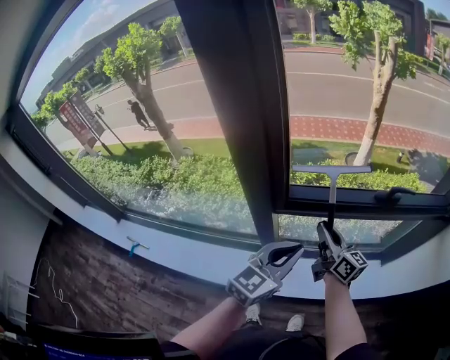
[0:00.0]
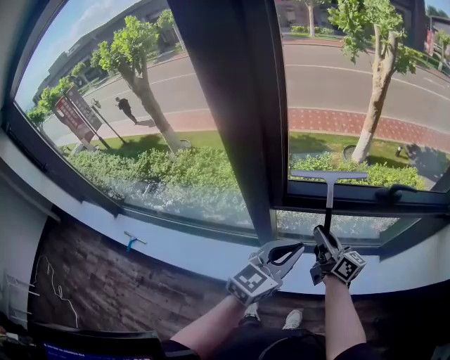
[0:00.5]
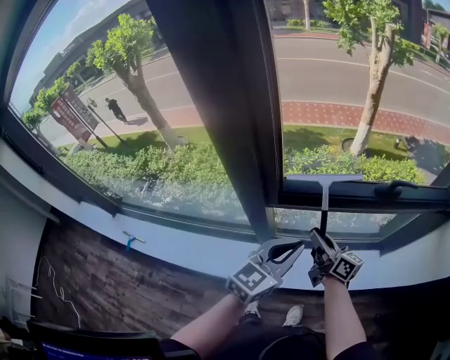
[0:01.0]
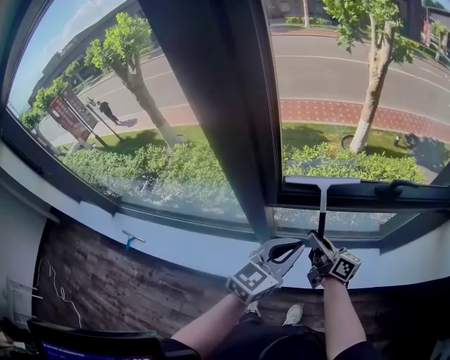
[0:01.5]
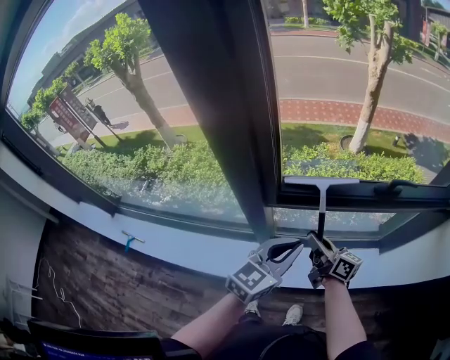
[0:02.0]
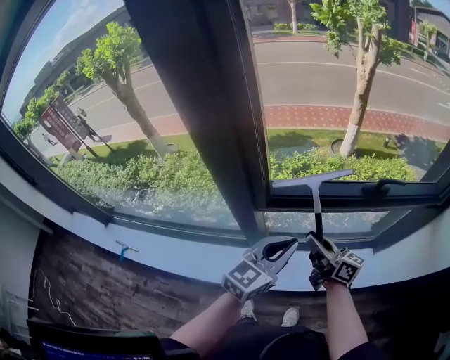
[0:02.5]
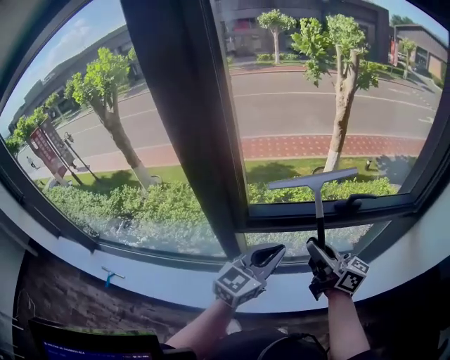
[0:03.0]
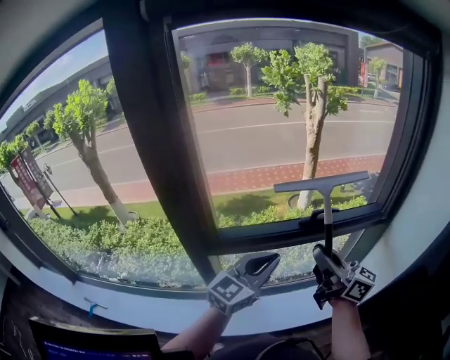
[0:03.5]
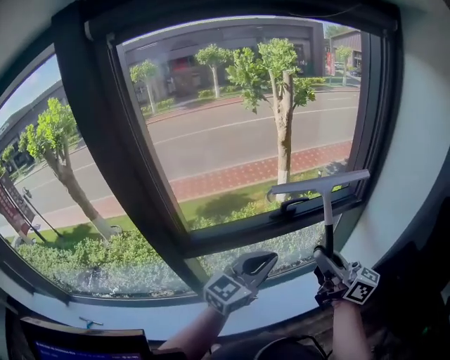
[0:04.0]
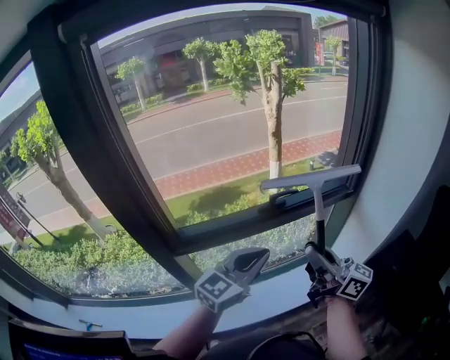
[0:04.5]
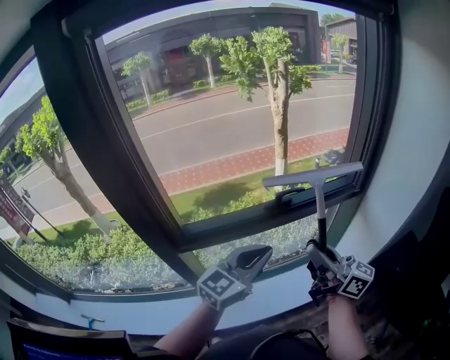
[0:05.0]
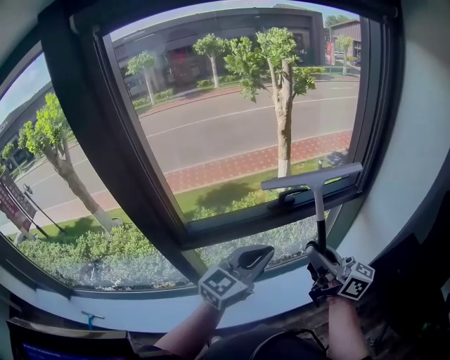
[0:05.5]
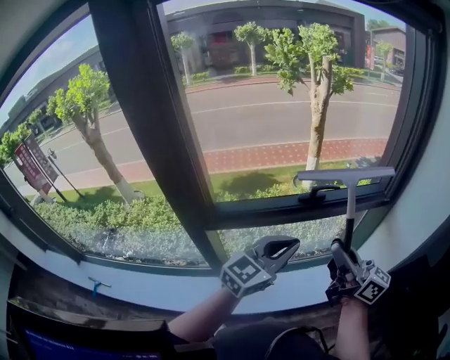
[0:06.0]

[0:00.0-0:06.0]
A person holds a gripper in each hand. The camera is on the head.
0:00.0 to 0:02.0: The left gripper moves some 5 cm, while the right gripper moves downward, about 10 cm.
0:02.0 to 0:04.0: The left gripper moves to the right and upward, some 20 cm, and changes its angle by approximately 30 degrees. Meanwhile the right gripper is displaced upward and to the right by some 35 cm, and swivels approximately 30 degrees.
0:04.0 to 0:06.0: The grippers move only a little.

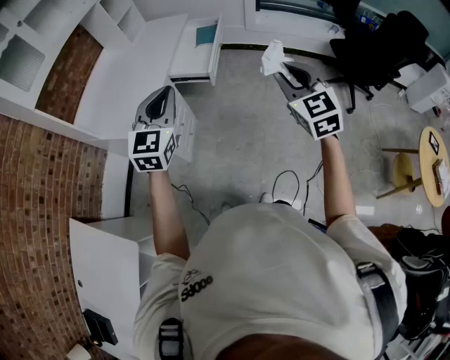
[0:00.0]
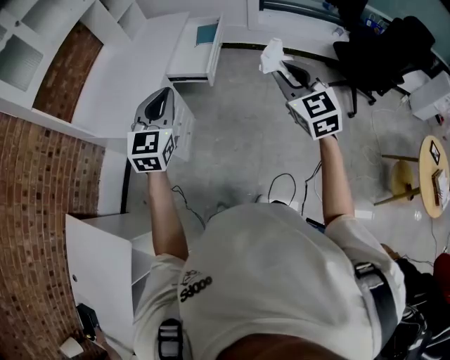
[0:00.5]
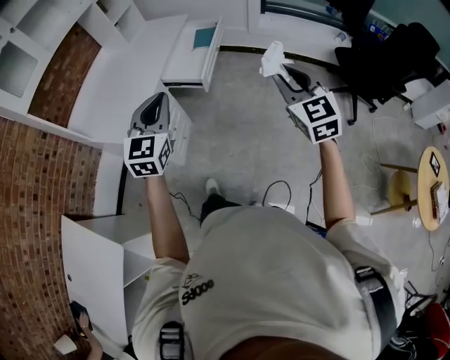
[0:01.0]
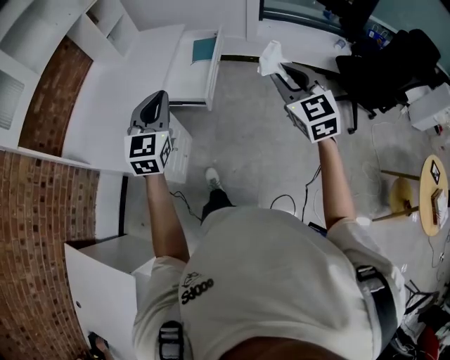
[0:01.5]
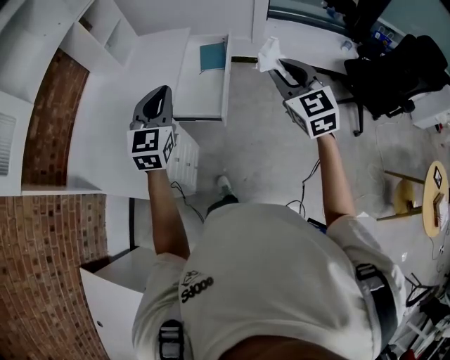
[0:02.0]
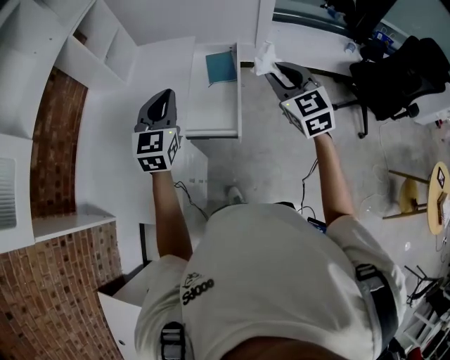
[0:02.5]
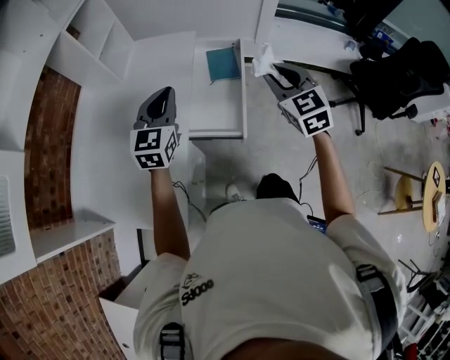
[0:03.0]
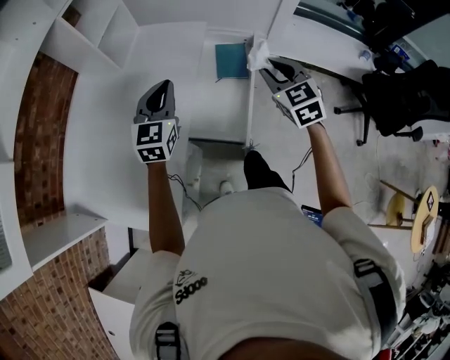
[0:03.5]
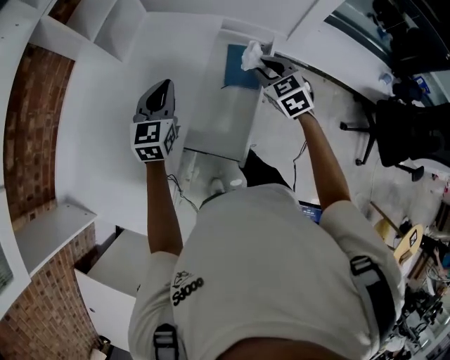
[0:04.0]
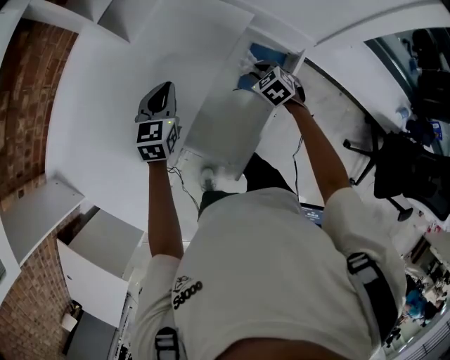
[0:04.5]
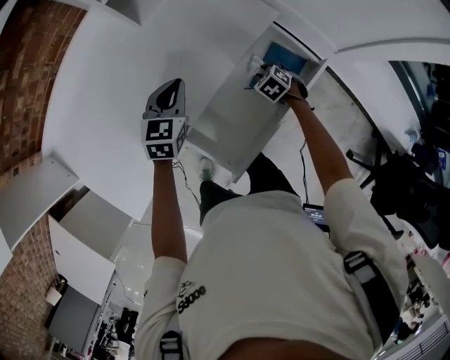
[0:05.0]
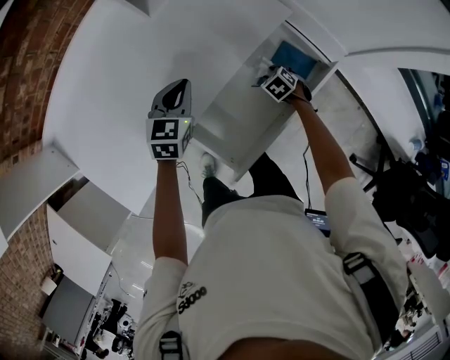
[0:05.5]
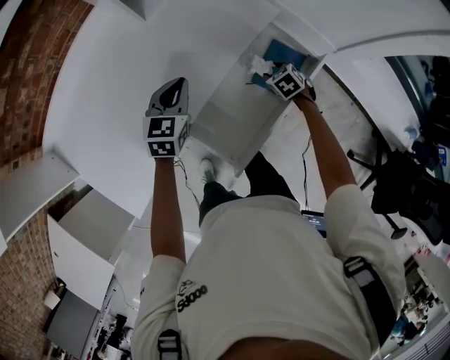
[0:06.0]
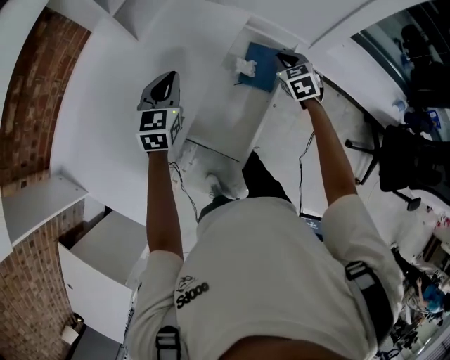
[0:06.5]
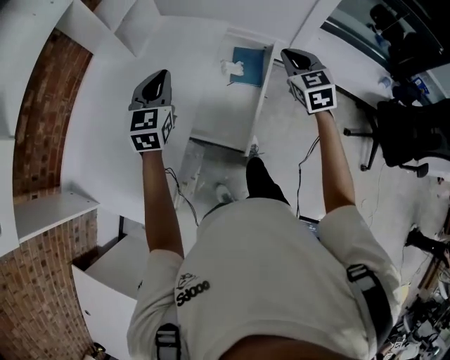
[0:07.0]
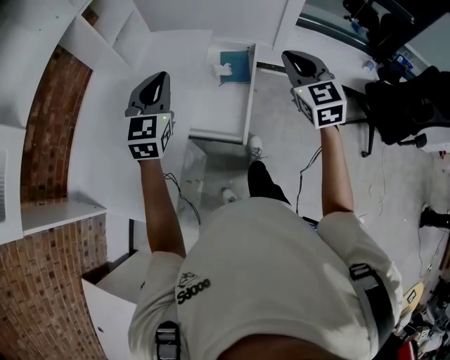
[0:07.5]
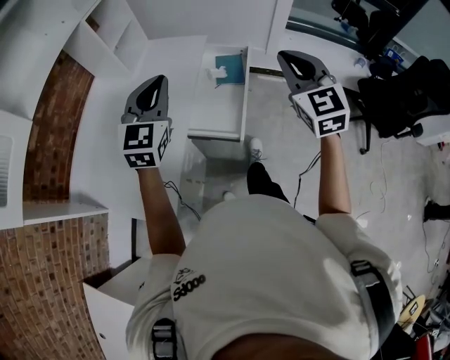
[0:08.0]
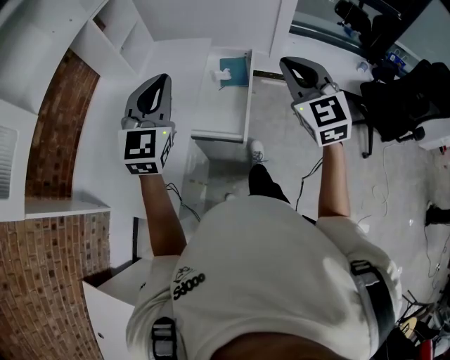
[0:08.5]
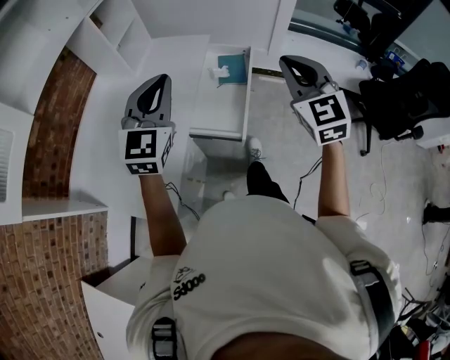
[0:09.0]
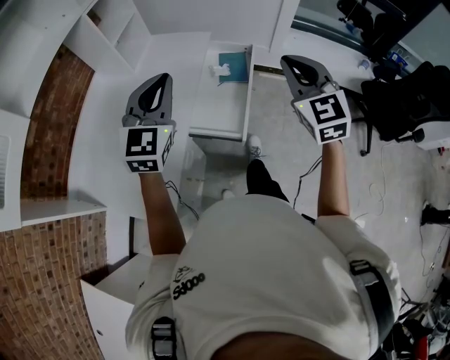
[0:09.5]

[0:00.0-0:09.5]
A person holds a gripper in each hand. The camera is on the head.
0:00.0 to 0:02.0: The two grippers go some 35 cm forward.
0:02.0 to 0:04.0: The two grippers go approximately 40 cm forward and downward. The right gripper rotates about 30 degrees.
0:04.0 to 0:05.5: The left gripper shifts some 15 cm downward, and turns by approximately 30 degrees. Meanwhile the right gripper heads downward, covering roughly 30 cm, and tips its fingers downward by some 30 degrees.
0:05.5 to 0:07.5: The left gripper shifts some 25 cm upward, and rotates approximately 40 degrees. The right gripper travels upward by approximately 50 cm, tips its fingers upward by some 60 degrees, and closes up.
0:07.5 to 0:09.5: The grippers both shift backward by about 5 cm.

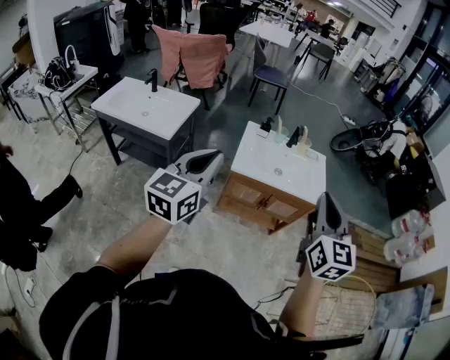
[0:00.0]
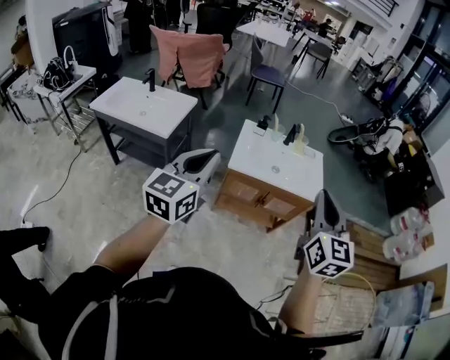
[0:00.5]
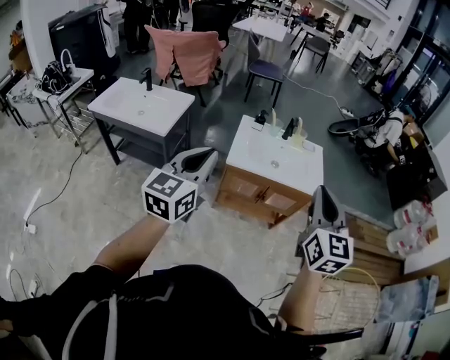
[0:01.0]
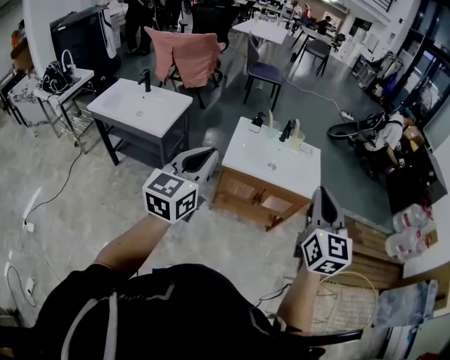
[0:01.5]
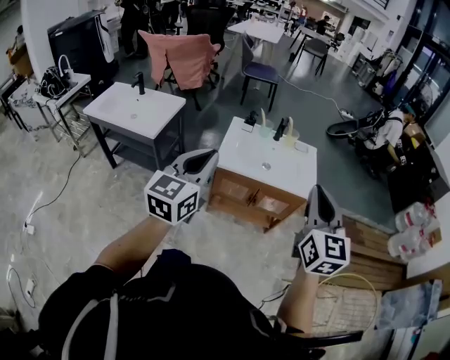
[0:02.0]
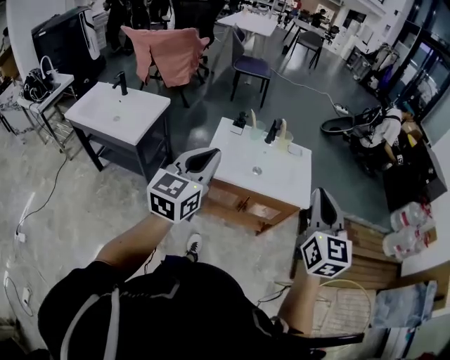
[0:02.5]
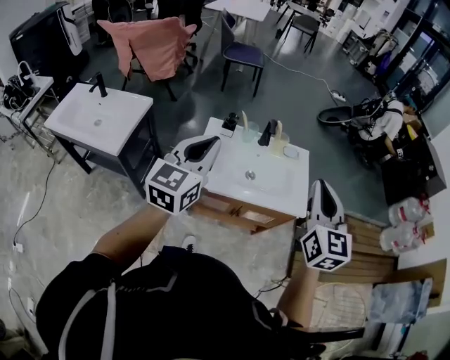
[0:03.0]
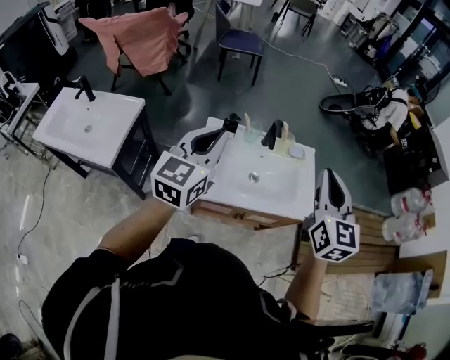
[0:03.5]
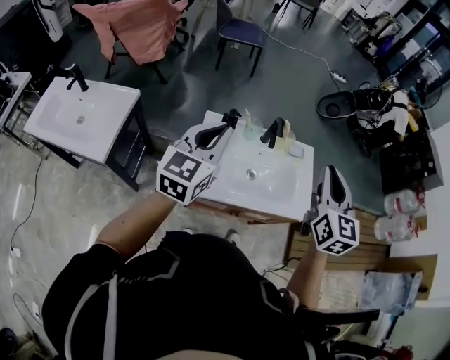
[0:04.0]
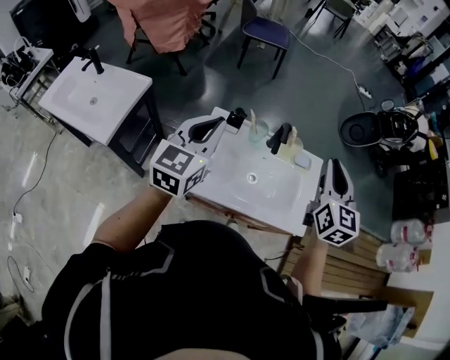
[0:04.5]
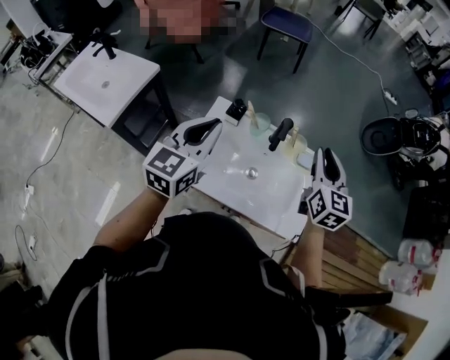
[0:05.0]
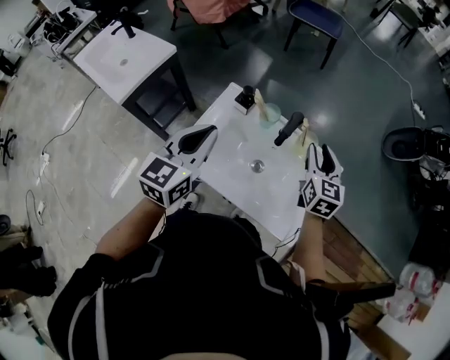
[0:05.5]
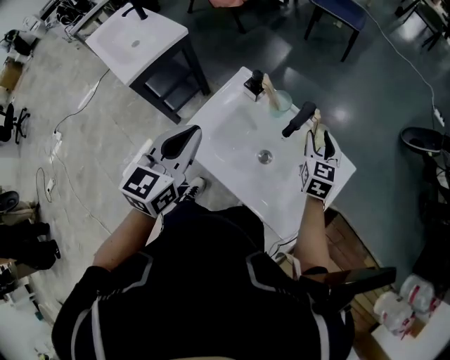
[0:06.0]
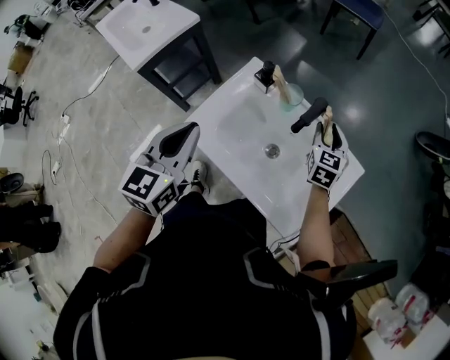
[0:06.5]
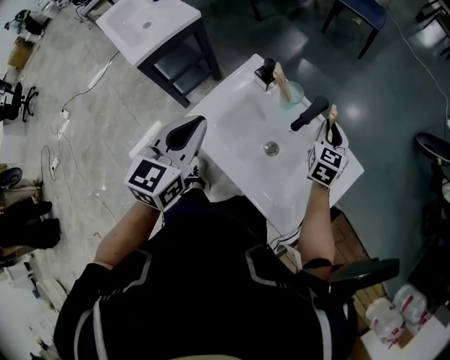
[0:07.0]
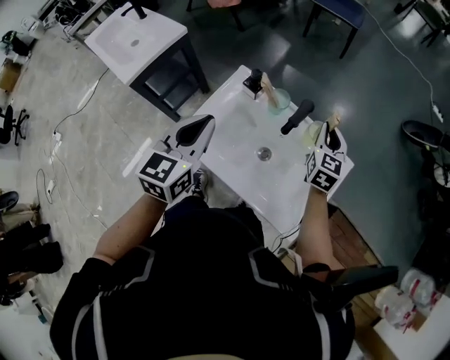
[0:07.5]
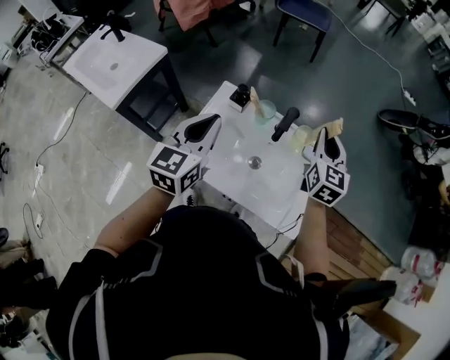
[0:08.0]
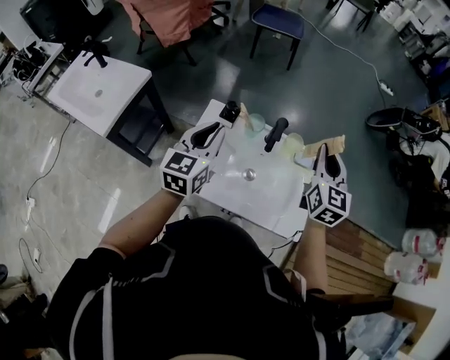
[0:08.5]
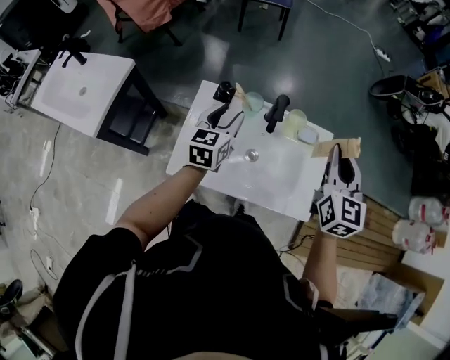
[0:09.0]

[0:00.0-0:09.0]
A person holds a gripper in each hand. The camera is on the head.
0:00.0 to 0:02.0: Both grippers travel together to the right, some 10 cm.
0:02.0 to 0:04.5: Both grippers are carried forward, some 40 cm.
0:04.5 to 0:07.0: The left gripper moves downward, backward and to the right, roughly 15 cm, and turns by roughly 30 degrees. The right gripper is displaced downward and forward by about 35 cm, rotates approximately 30 degrees, and opens and closes again.
0:07.0 to 0:09.0: The left gripper shifts about 20 cm forward and downward, turns by about 30 degrees, and opens; the right gripper moves upward and backward, about 25 cm, and changes its angle by some 20 degrees.

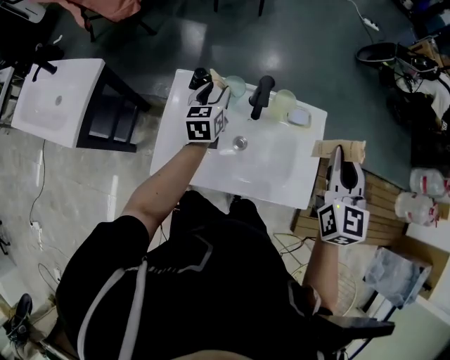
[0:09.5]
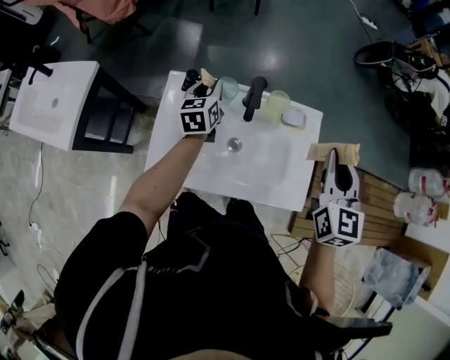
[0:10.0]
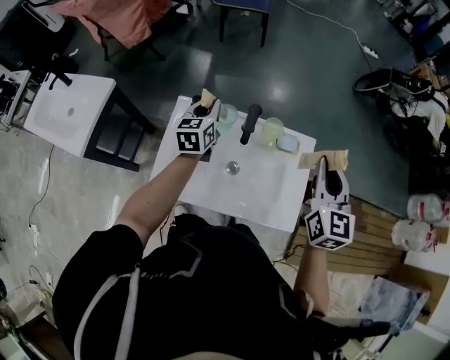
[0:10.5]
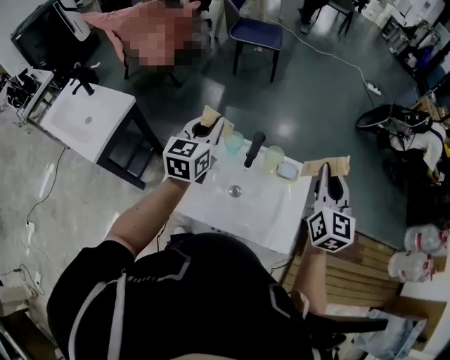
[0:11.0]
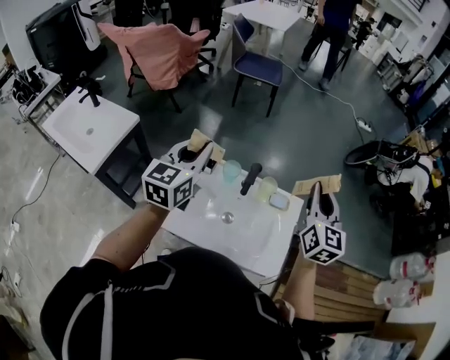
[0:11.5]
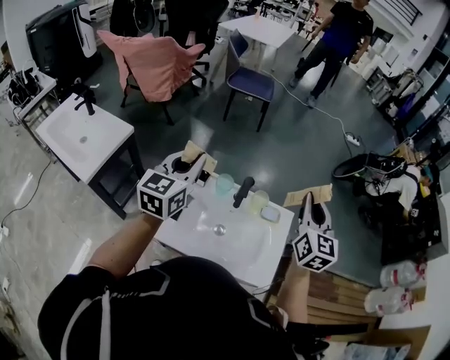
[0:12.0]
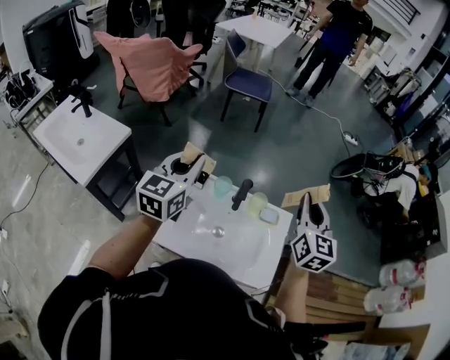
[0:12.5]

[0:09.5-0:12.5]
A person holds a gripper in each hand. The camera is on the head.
0:09.5 to 0:11.0: The left gripper travels upward by some 20 cm, and closes. Meanwhile the right gripper moves upward, roughly 5 cm.
0:11.0 to 0:12.5: The left gripper travels upward and to the left by about 10 cm. The right gripper moves about 5 cm.
